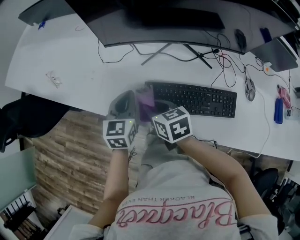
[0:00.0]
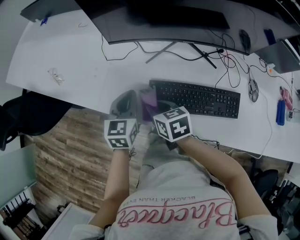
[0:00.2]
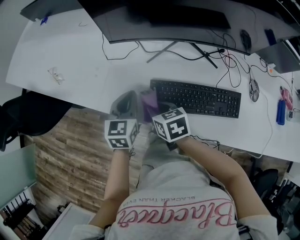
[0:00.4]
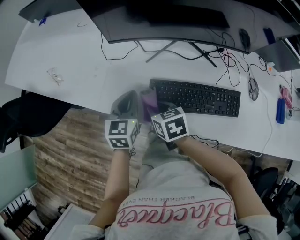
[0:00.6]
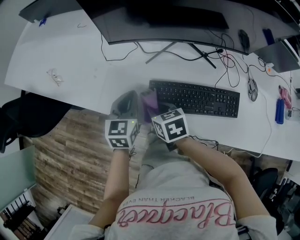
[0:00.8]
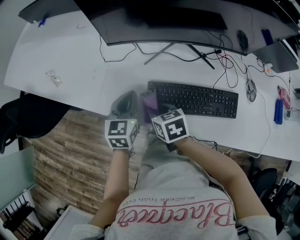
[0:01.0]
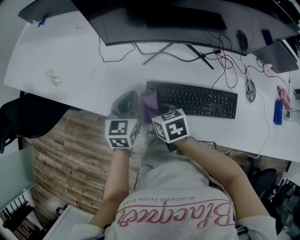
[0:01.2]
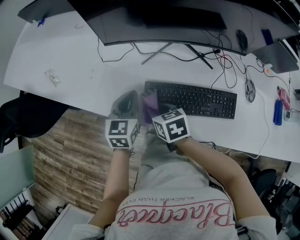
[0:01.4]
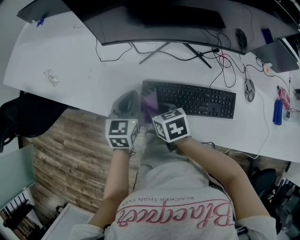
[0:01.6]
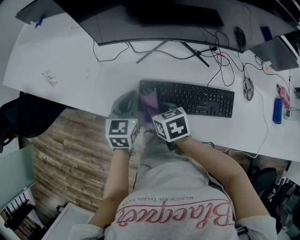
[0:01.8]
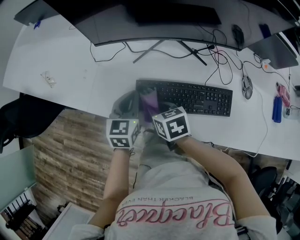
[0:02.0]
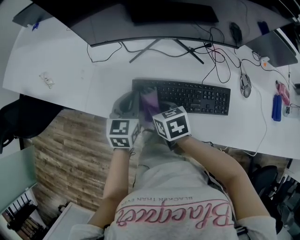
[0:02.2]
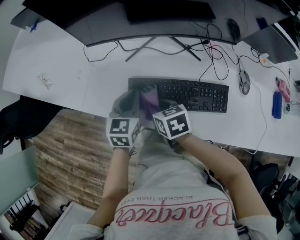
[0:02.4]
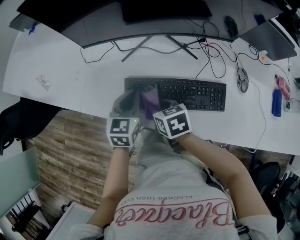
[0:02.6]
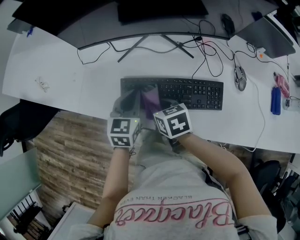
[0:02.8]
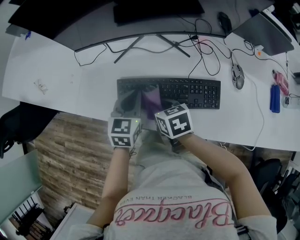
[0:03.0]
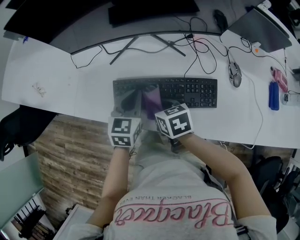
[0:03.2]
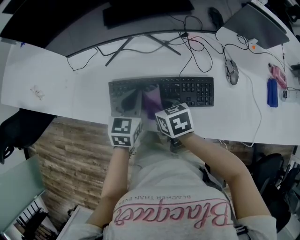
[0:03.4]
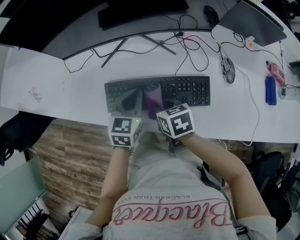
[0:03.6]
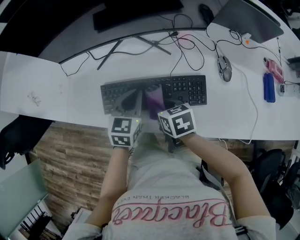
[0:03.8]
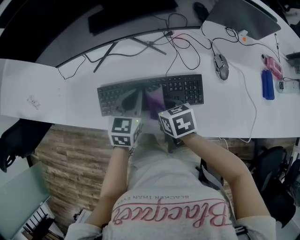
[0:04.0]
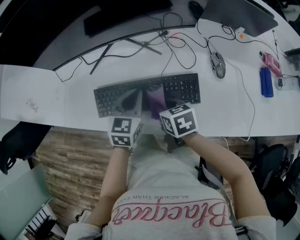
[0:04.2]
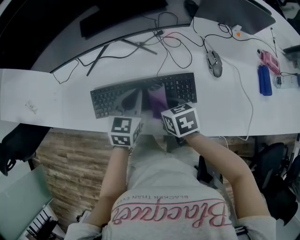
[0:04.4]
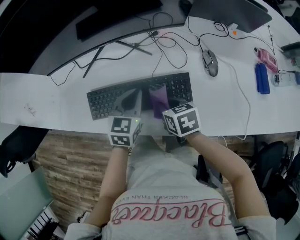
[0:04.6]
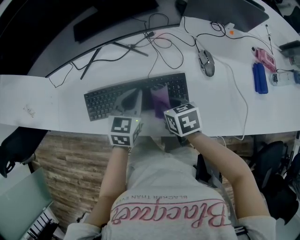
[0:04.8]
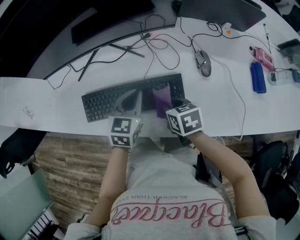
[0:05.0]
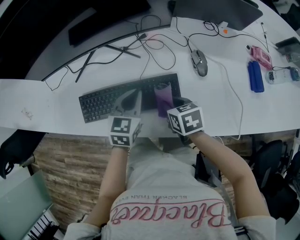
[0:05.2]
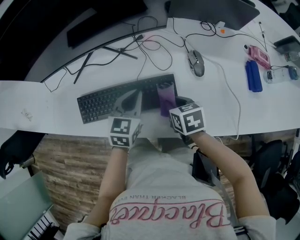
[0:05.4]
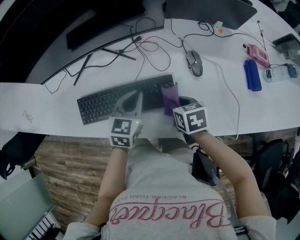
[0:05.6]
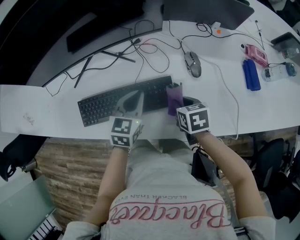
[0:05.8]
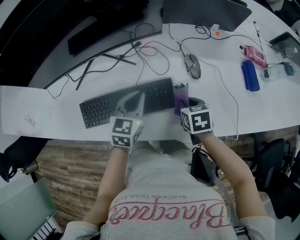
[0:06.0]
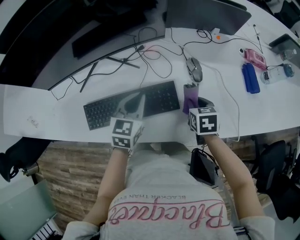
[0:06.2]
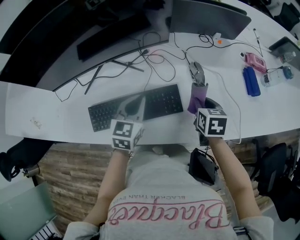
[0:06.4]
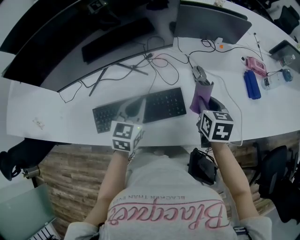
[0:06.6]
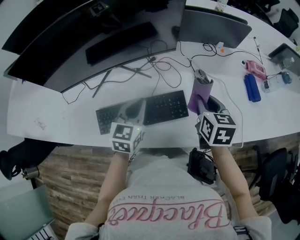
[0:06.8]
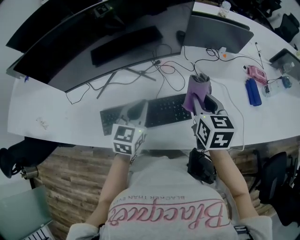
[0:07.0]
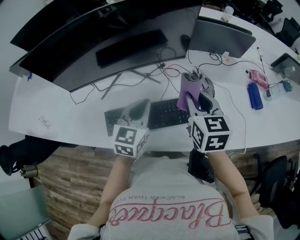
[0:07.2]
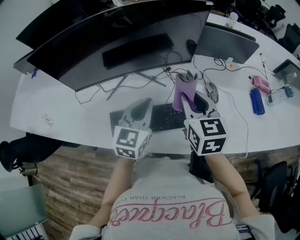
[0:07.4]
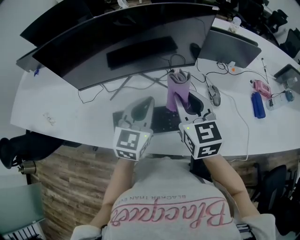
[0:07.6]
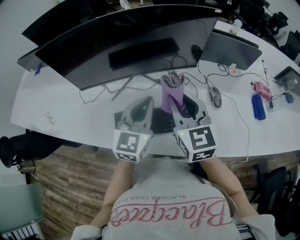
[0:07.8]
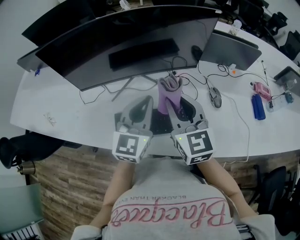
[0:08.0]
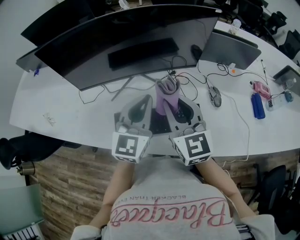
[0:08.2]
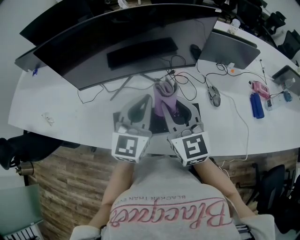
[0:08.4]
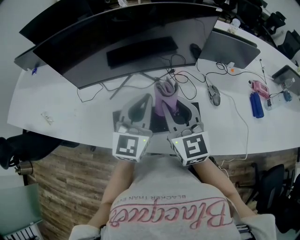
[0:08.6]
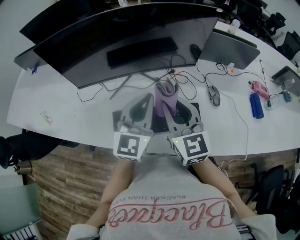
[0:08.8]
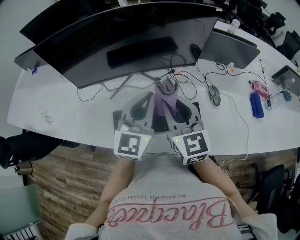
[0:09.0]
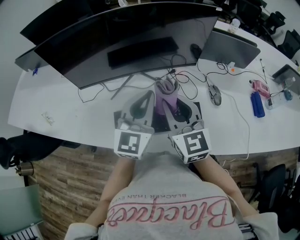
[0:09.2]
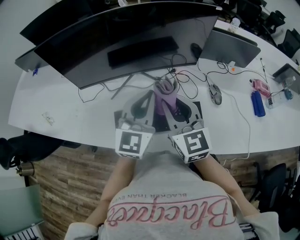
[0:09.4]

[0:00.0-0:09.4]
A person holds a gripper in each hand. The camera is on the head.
0:00.0 to 0:01.6: The grippers stay close to where they were, moving slightly.
0:01.6 to 0:03.2: Both grippers travel together to the right, roughly 15 cm.
0:03.2 to 0:04.8: The grippers both shift to the right by approximately 15 cm.
0:04.8 to 0:06.2: The left gripper shifts approximately 5 cm to the right, while the right gripper heads to the right, covering about 15 cm, and rotates some 20 degrees.
0:06.2 to 0:07.8: The right gripper heads upward and to the left, covering about 35 cm, and points its fingers some 40 degrees further upward, while the left gripper heads upward and to the left, covering some 20 cm, and turns by approximately 20 degrees.
0:07.8 to 0:09.4: The grippers stay close to where they were, moving slightly.

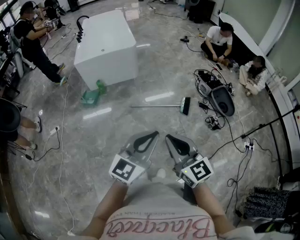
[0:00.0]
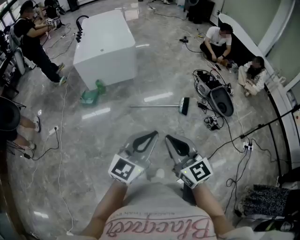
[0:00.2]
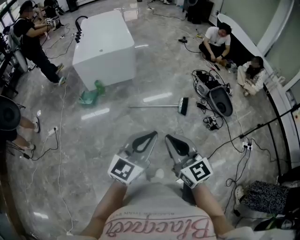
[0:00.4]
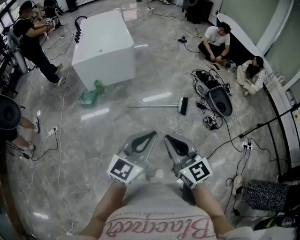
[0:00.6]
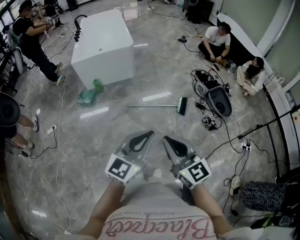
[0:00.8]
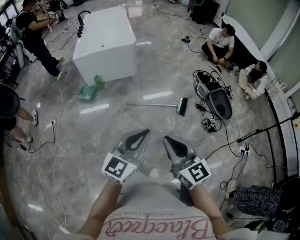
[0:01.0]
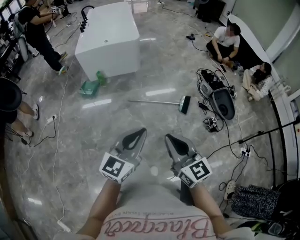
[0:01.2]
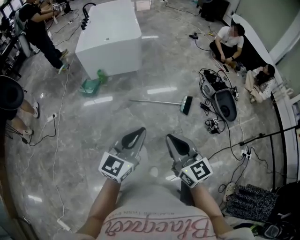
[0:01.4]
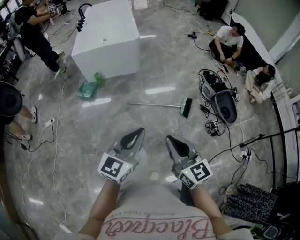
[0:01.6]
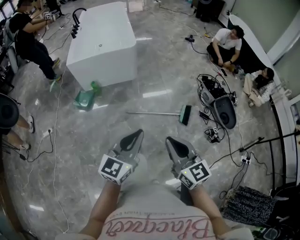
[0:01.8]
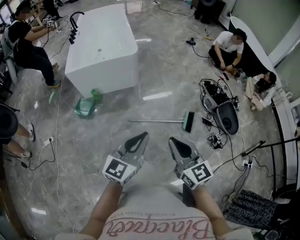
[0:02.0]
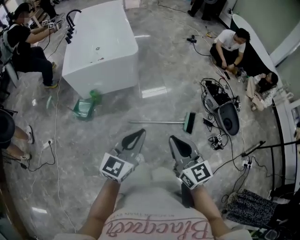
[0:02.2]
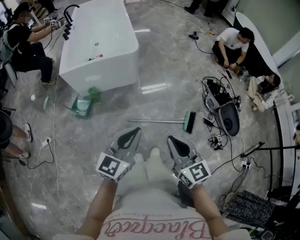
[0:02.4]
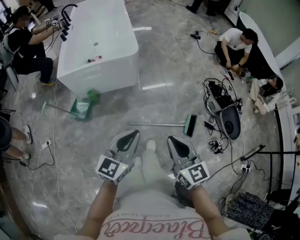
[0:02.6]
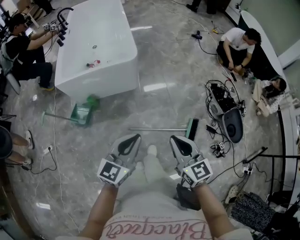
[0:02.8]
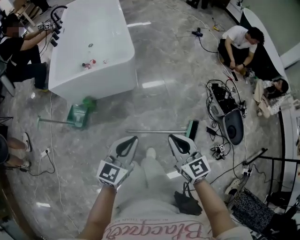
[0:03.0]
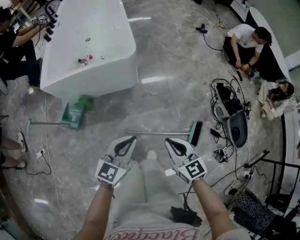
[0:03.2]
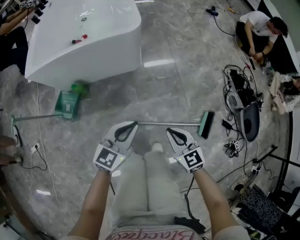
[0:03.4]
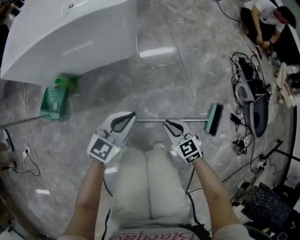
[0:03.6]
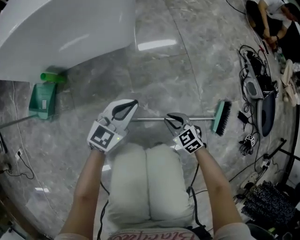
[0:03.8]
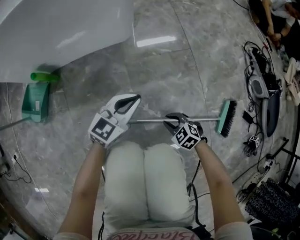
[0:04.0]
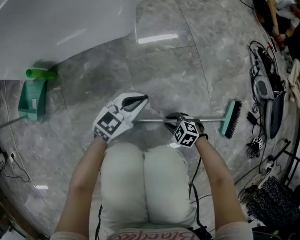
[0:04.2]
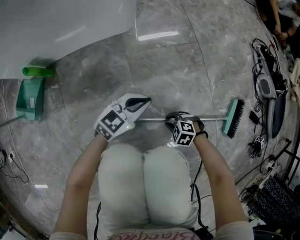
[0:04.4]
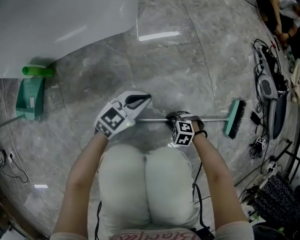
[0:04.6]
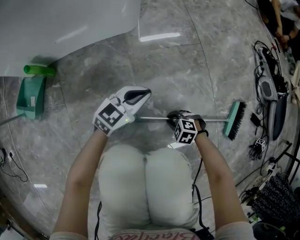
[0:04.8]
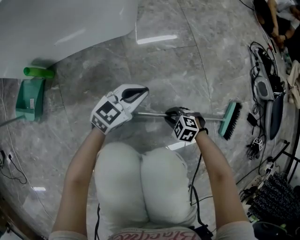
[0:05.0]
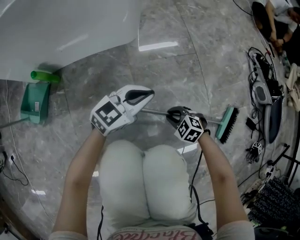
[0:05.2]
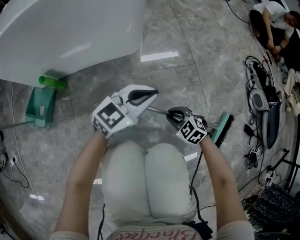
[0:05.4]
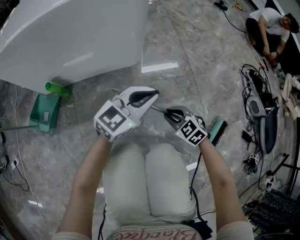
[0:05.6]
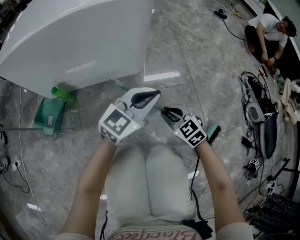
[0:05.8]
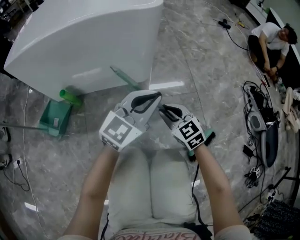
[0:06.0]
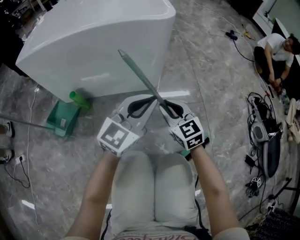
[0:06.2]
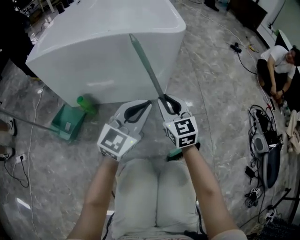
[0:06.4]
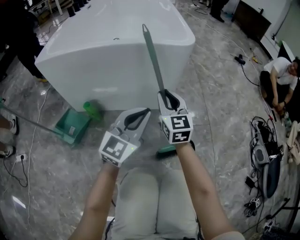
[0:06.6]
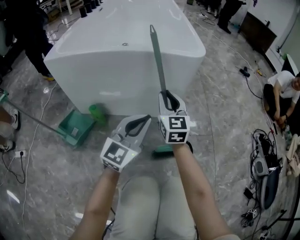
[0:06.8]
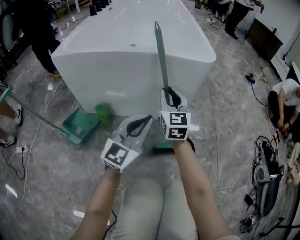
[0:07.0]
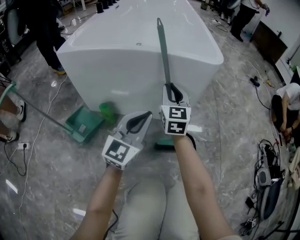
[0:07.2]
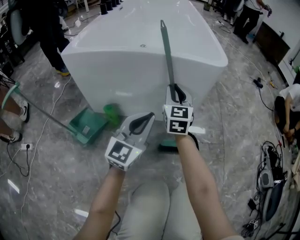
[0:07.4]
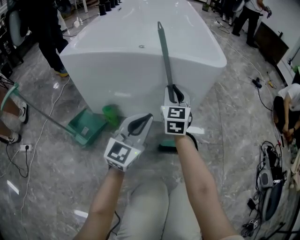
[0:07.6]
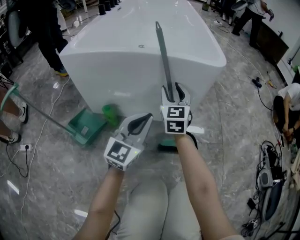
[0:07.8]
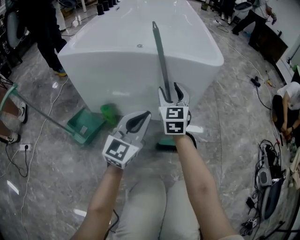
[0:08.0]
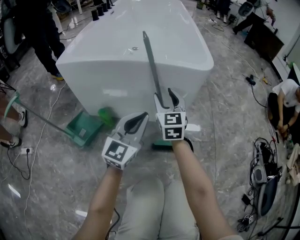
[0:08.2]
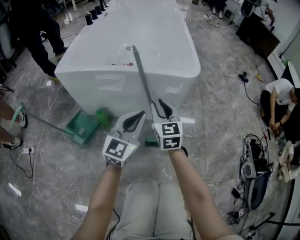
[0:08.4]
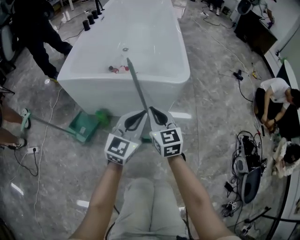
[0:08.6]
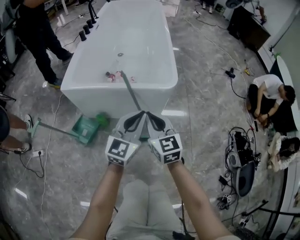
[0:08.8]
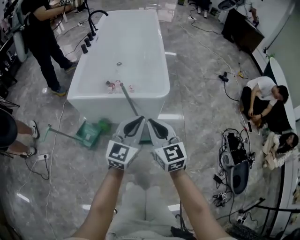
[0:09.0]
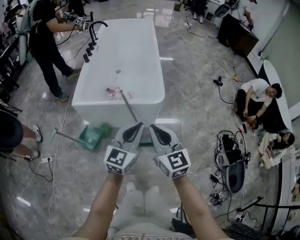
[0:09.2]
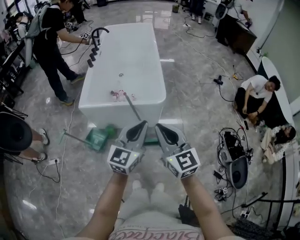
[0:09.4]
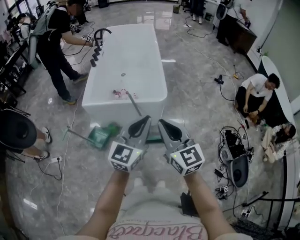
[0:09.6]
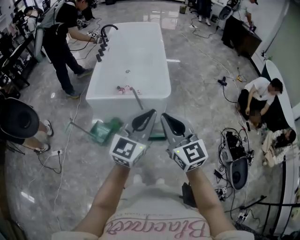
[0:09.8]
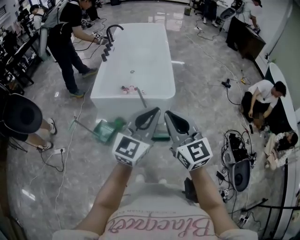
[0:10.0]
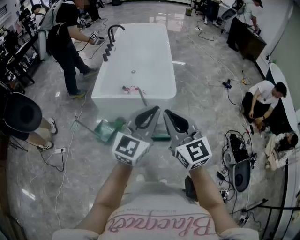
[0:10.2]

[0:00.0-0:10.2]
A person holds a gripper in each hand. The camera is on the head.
0:00.0 to 0:01.4: The left gripper moves about 5 cm, while the right gripper shifts by about 5 cm.
0:01.4 to 0:03.0: The pair of grippers is taken forward, approximately 40 cm.
0:03.0 to 0:04.4: The grippers both shift downward by some 60 cm. The left gripper changes its angle by roughly 30 degrees. The right gripper points its fingers roughly 50 degrees further downward, and opens.
0:04.4 to 0:05.8: The two grippers go approximately 20 cm upward. The left gripper rotates roughly 20 degrees. Meanwhile the right gripper tilts its fingers roughly 30 degrees upward.
0:05.8 to 0:07.2: The left gripper moves to the left, some 20 cm, and rotates roughly 40 degrees. Meanwhile the right gripper moves to the left, forward and upward, about 35 cm, and angles its fingers upward, by roughly 30 degrees.
0:07.2 to 0:08.8: The right gripper is displaced upward and backward by roughly 25 cm, and opens, then closes once more. Meanwhile the left gripper is displaced upward by approximately 20 cm.
0:08.8 to 0:10.2: The grippers both shift upward and backward by roughly 30 cm.

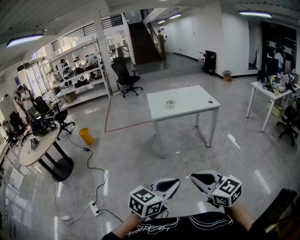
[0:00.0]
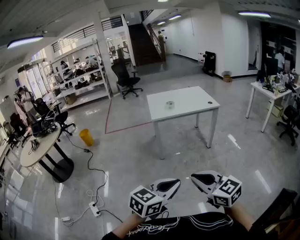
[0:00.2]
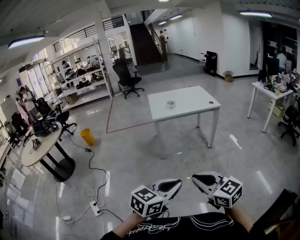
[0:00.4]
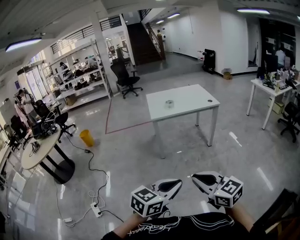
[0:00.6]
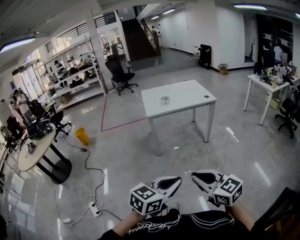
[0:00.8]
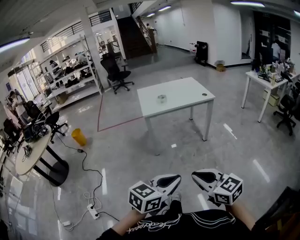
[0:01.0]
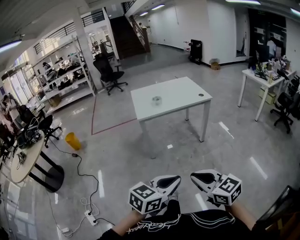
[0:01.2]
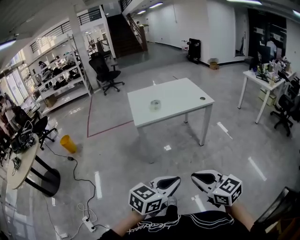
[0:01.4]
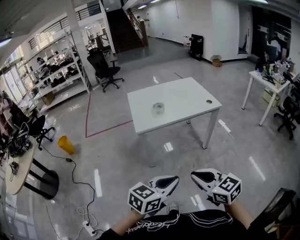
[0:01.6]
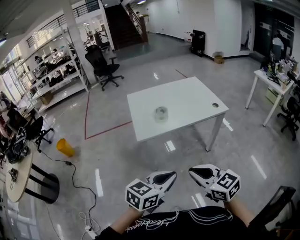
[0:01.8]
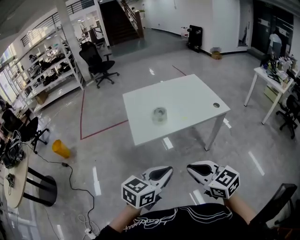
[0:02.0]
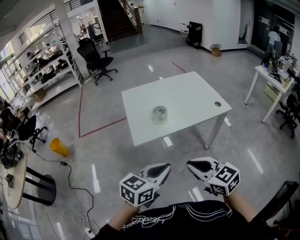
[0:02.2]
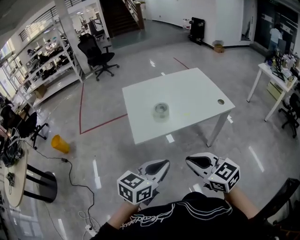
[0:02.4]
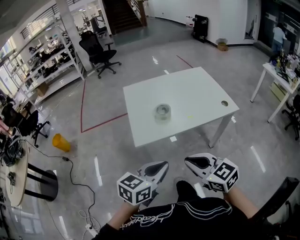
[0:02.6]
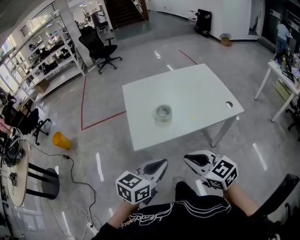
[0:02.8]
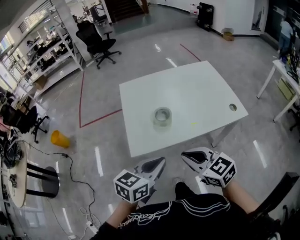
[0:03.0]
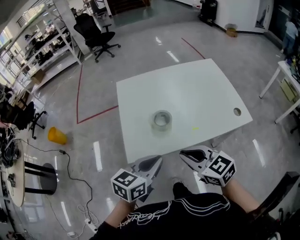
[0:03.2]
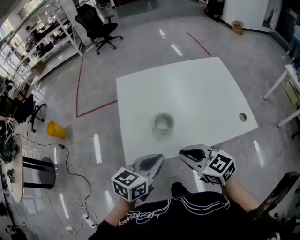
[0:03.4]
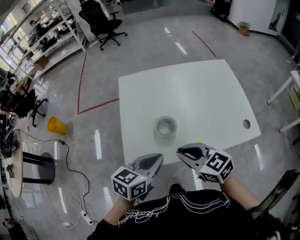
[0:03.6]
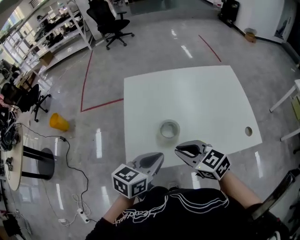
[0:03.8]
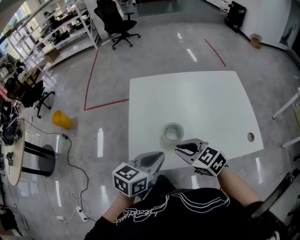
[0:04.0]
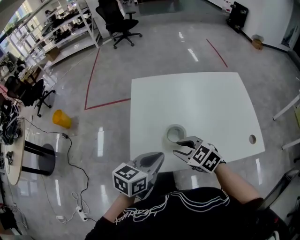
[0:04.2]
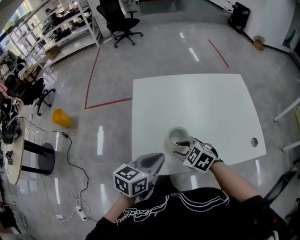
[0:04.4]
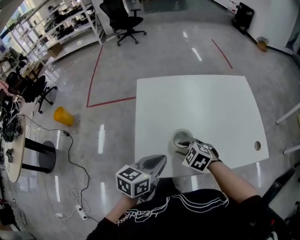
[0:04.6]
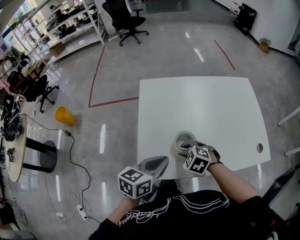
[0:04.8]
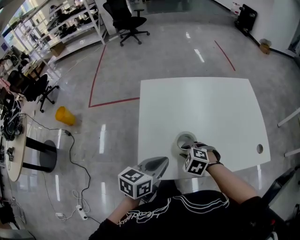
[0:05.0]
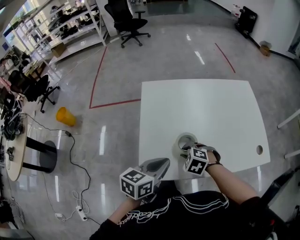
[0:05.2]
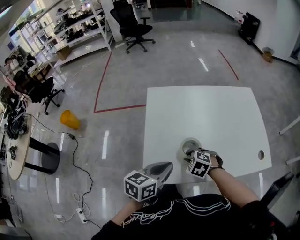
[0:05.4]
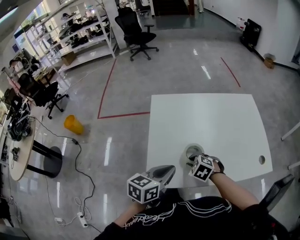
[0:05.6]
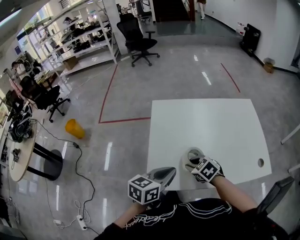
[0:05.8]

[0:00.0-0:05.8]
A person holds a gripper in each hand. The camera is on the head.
0:00.0 to 0:01.4: Both grippers move forward, roughly 20 cm.
0:01.4 to 0:02.8: Both grippers are carried forward, some 40 cm.
0:02.8 to 0:04.4: The left gripper moves forward, approximately 25 cm; the right gripper travels forward and downward by some 30 cm, turns by approximately 40 degrees, and opens up.
